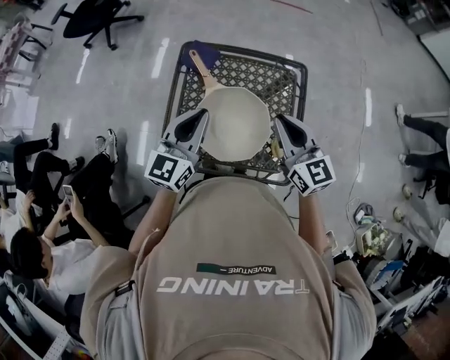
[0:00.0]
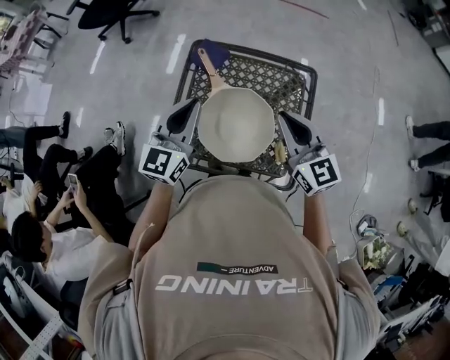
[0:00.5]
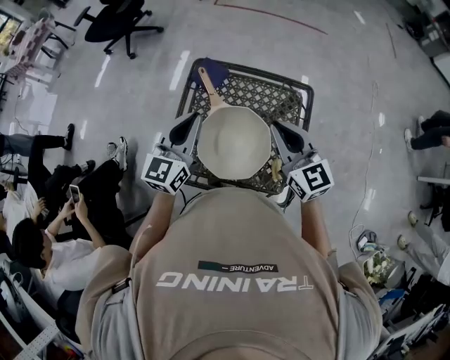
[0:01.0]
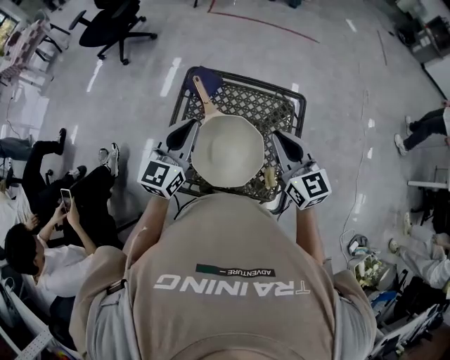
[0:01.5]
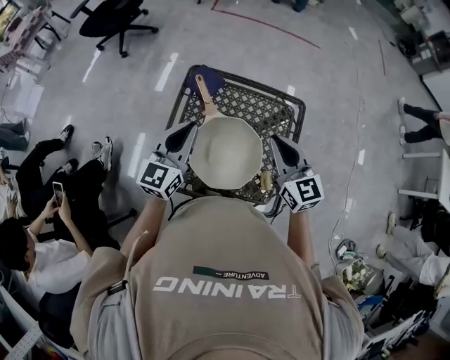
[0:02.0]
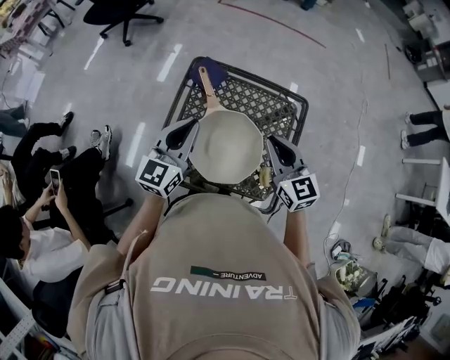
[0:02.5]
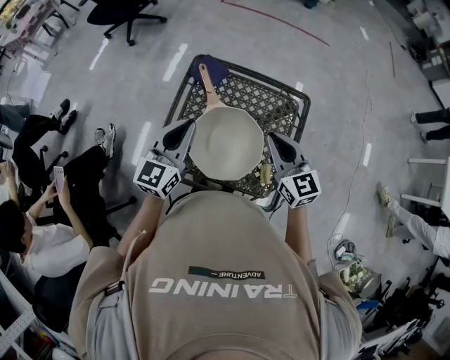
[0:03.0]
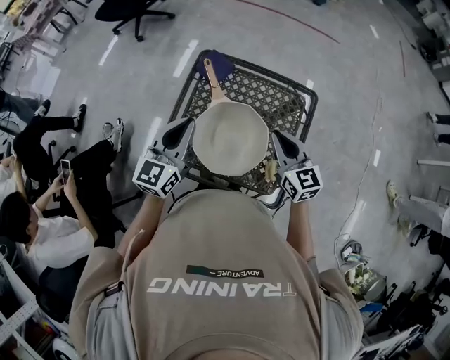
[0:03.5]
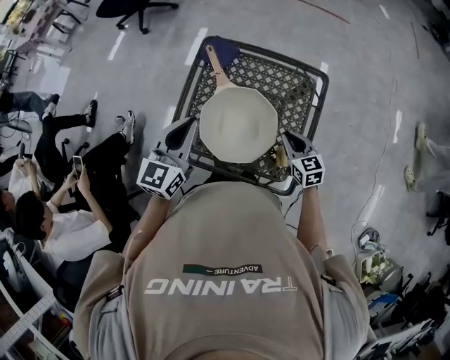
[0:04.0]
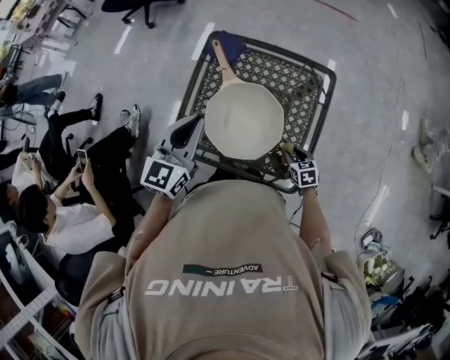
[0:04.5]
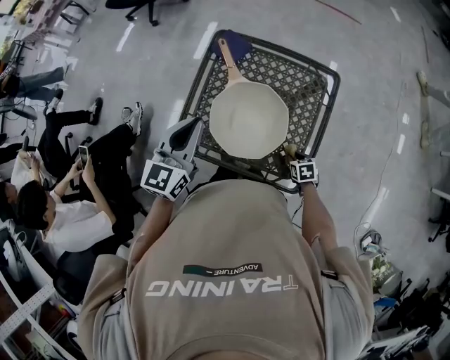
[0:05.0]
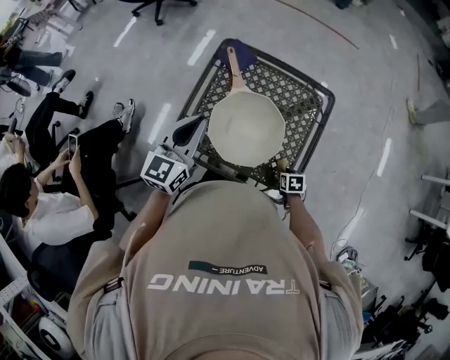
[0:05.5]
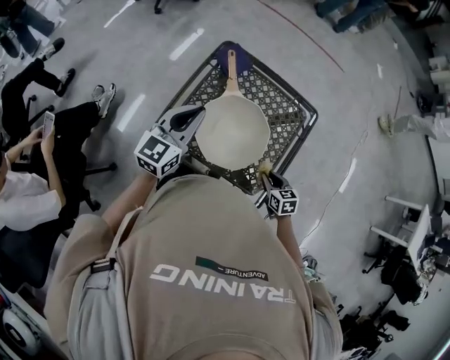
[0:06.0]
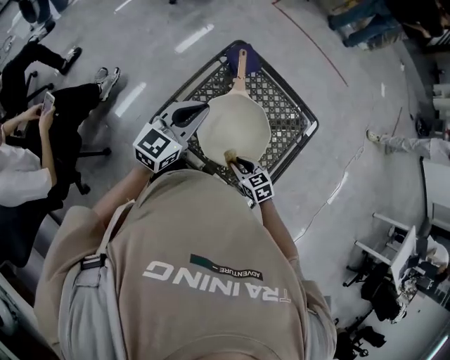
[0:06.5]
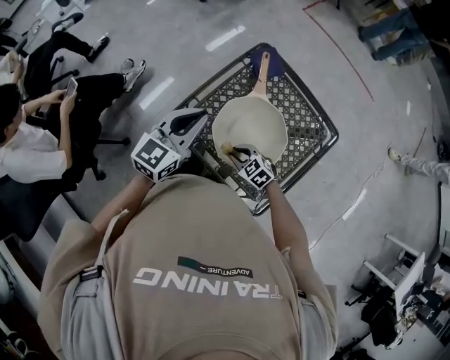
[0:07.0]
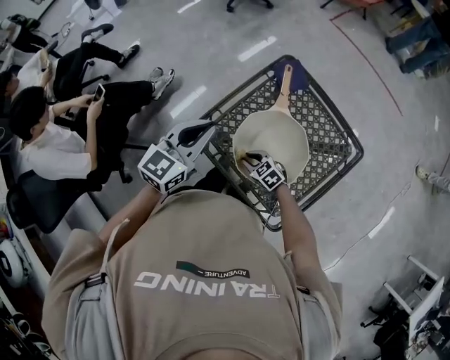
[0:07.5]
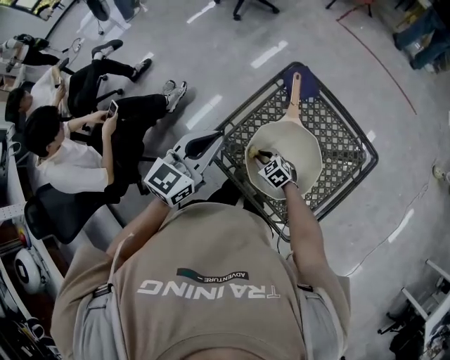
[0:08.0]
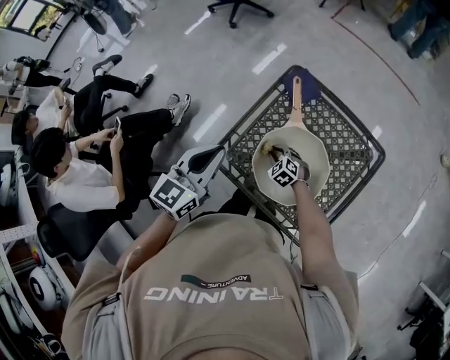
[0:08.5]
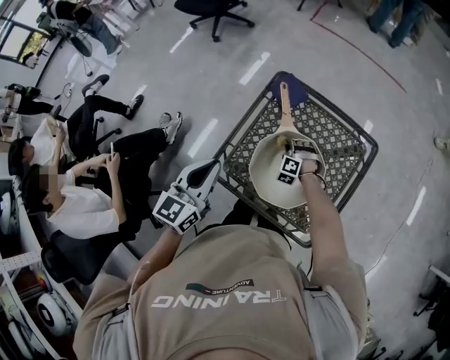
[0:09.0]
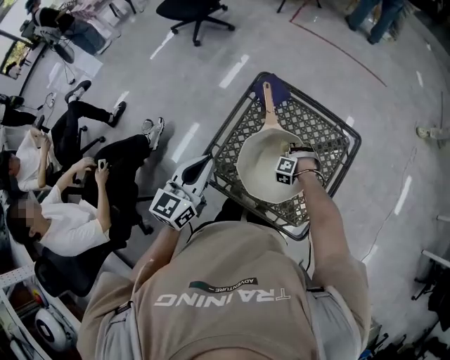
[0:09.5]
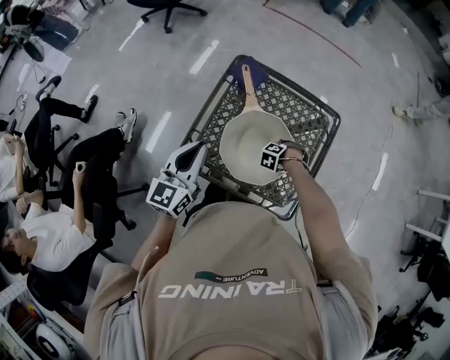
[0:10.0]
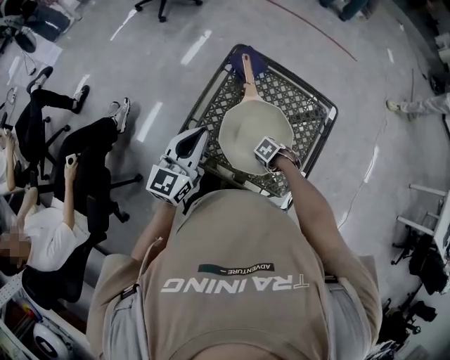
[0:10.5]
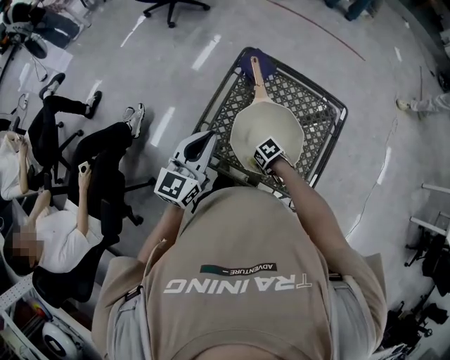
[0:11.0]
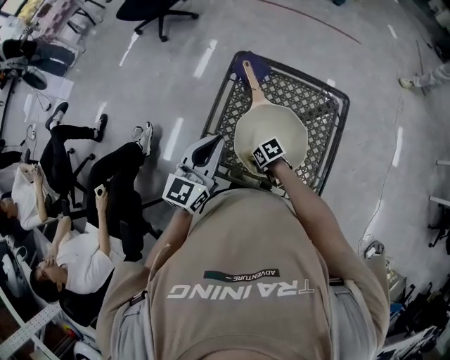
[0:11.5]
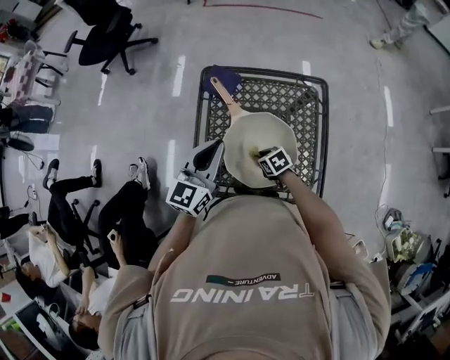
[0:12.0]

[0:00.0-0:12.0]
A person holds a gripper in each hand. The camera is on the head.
0.0 to 2.0 s: The grippers make only small movements.
2.0 to 4.0 s: The left gripper goes roughly 5 cm backward, while the right gripper is displaced downward by about 20 cm, and turns by approximately 20 degrees.
4.0 to 6.0 s: The right gripper travels backward by some 10 cm, and travels downward and back again, approximately 15 cm each way. Meanwhile the left gripper shifts by approximately 5 cm.
6.0 to 8.0 s: The right gripper moves about 30 cm, and twists approximately 40 degrees counterclockwise, seen from behind. Meanwhile the left gripper ends up about 5 cm from where it was.
8.0 to 10.0 s: The right gripper shifts by about 20 cm, and turns by approximately 60 degrees.
10.0 to 12.0 s: The right gripper twists roughly 70 degrees clockwise, seen from behind, while the left gripper moves some 10 cm, and rotates some 20 degrees.

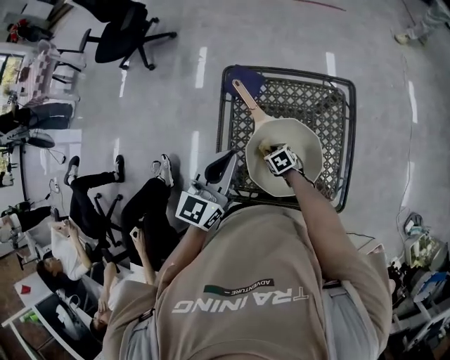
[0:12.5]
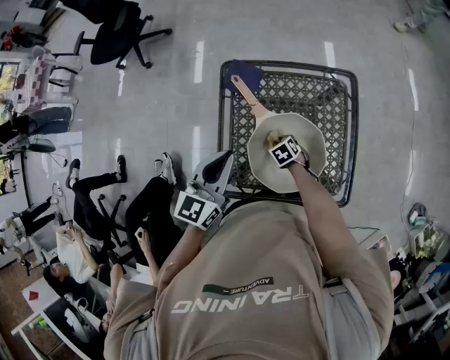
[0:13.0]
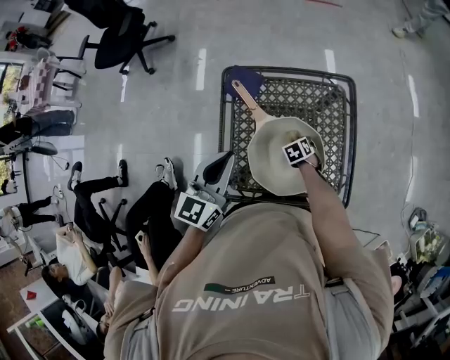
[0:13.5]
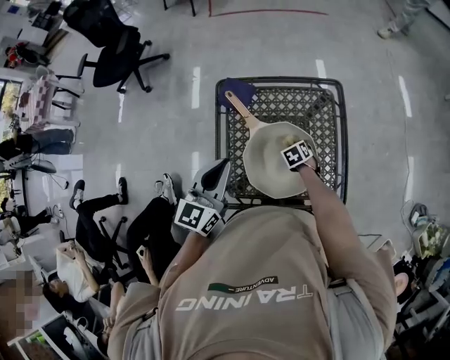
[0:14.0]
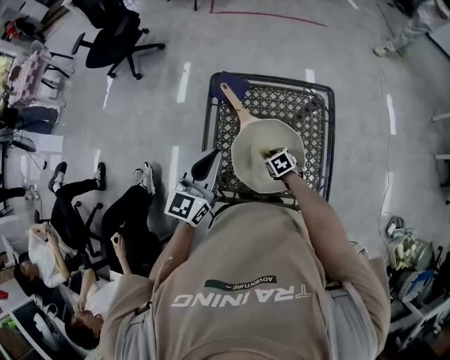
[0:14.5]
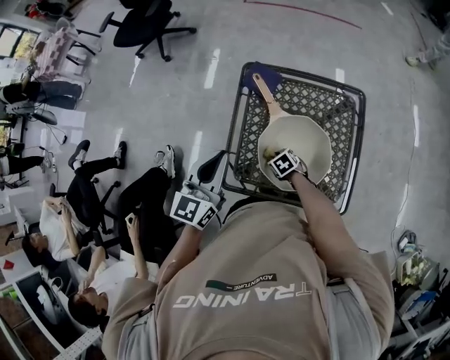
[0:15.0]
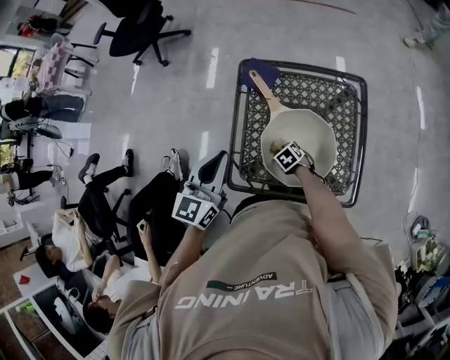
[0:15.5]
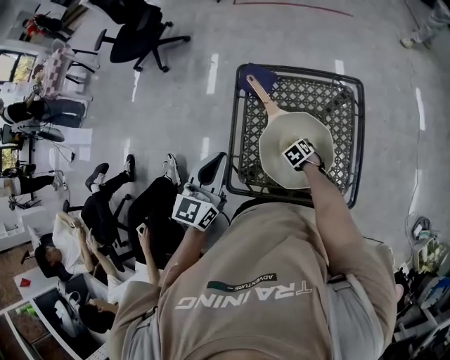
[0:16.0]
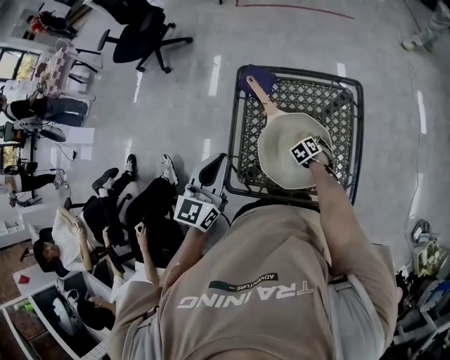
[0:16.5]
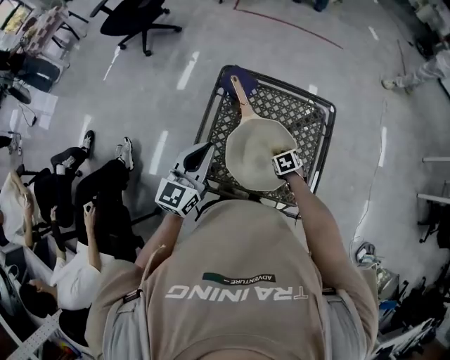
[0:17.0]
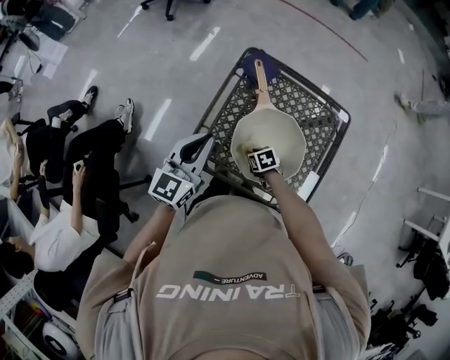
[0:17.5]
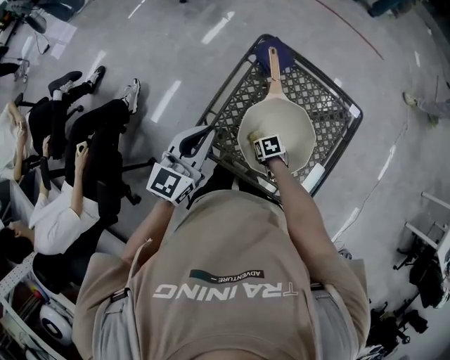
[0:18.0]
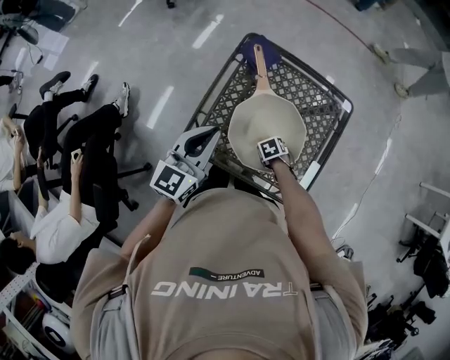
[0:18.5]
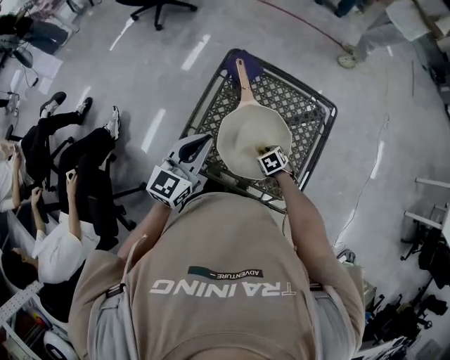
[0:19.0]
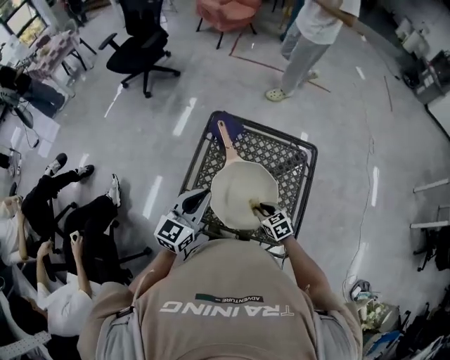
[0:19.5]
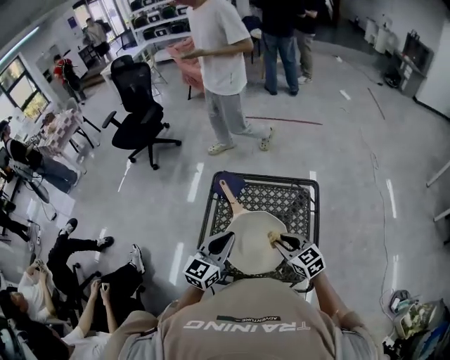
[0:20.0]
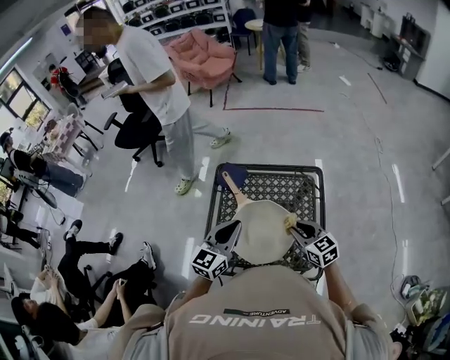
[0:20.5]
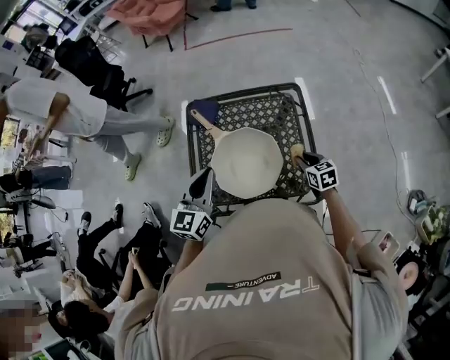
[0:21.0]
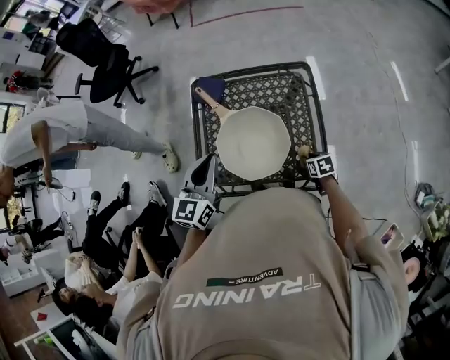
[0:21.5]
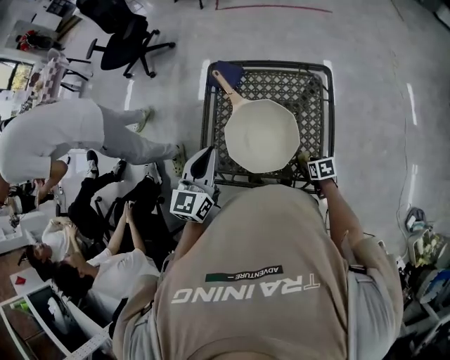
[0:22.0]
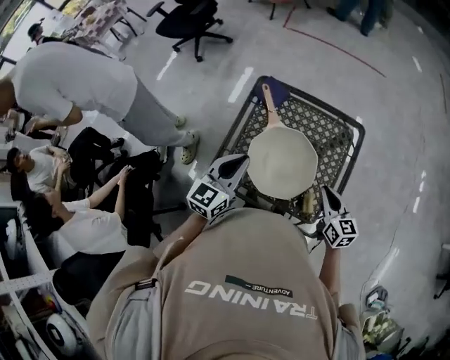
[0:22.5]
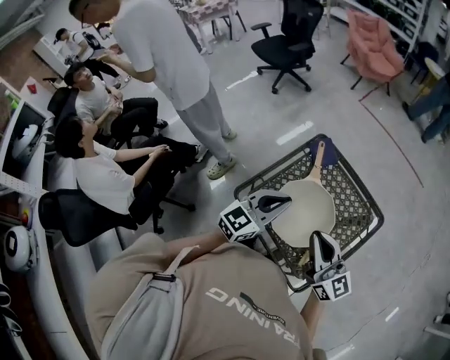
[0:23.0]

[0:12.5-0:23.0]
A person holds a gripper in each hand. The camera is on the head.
12.5 to 14.5 s: The right gripper is displaced to the right by about 5 cm.
14.5 to 16.5 s: The right gripper shifts by approximately 10 cm, and rotates roughly 30 degrees. The left gripper changes place by approximately 5 cm.
16.5 to 19.0 s: The left gripper ends up roughly 5 cm from where it was; the right gripper rotates some 20 degrees.
19.0 to 21.0 s: The right gripper travels to the right and upward by some 20 cm, and tips its fingers upward by approximately 30 degrees; the left gripper is displaced to the right by roughly 5 cm.
21.0 to 23.0 s: The right gripper moves upward, roughly 30 cm, tilts its fingers some 50 degrees upward, and opens, then closes once more; the left gripper ends up some 5 cm from where it was.

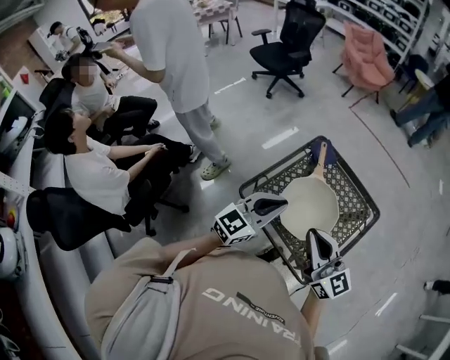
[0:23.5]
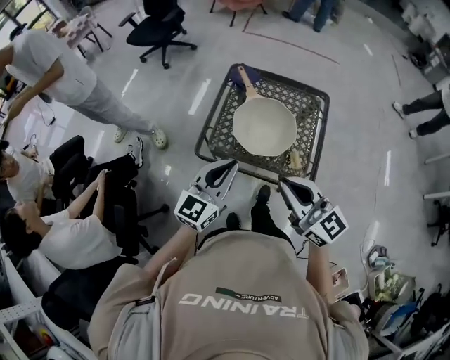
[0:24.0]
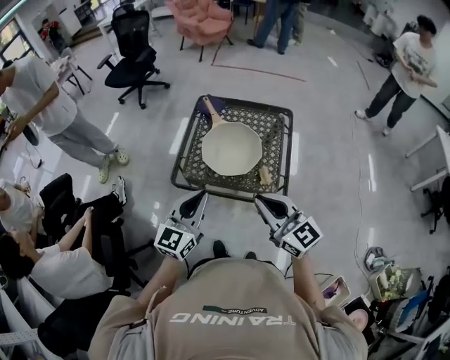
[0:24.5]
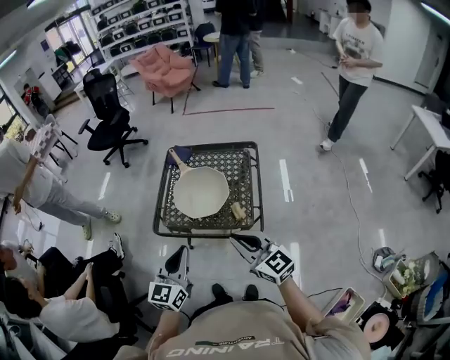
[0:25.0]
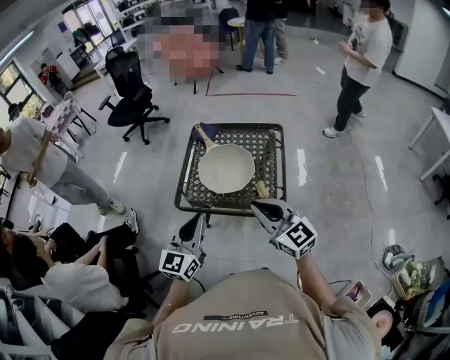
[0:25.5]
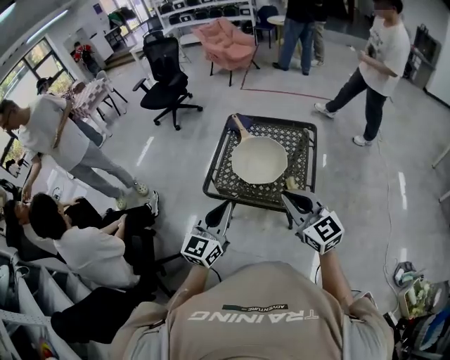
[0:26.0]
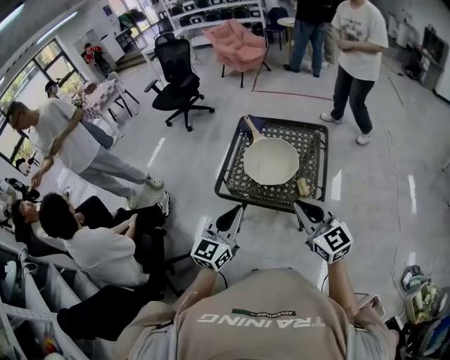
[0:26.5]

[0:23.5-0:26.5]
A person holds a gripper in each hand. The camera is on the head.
23.5 to 25.0 s: The left gripper goes some 20 cm backward, while the right gripper moves backward and to the right, some 20 cm, and rotates about 30 degrees.
25.0 to 26.5 s: The left gripper changes place by about 5 cm.

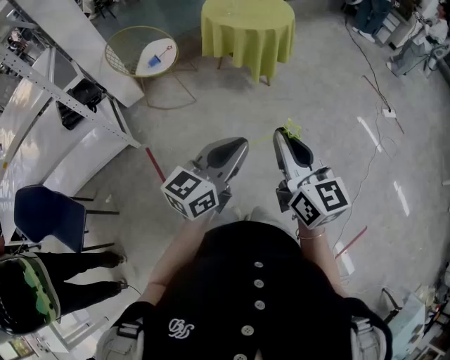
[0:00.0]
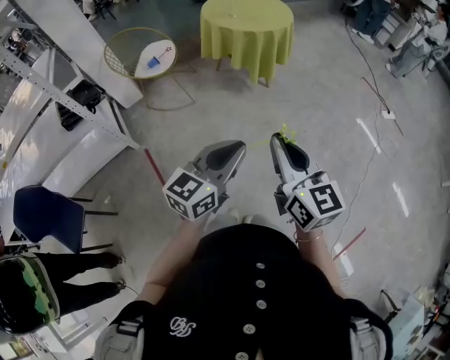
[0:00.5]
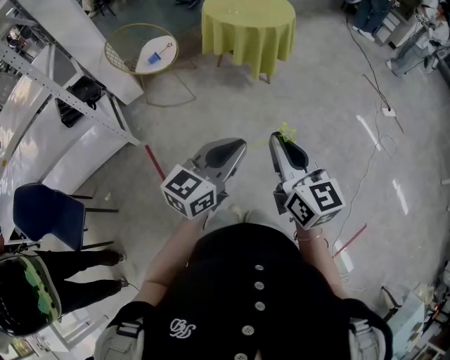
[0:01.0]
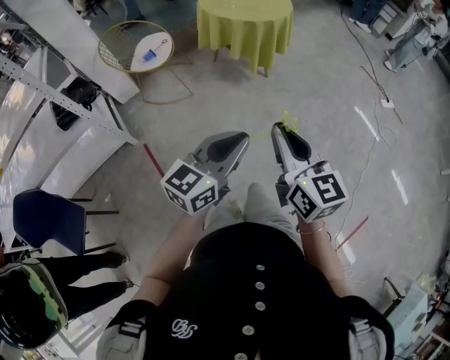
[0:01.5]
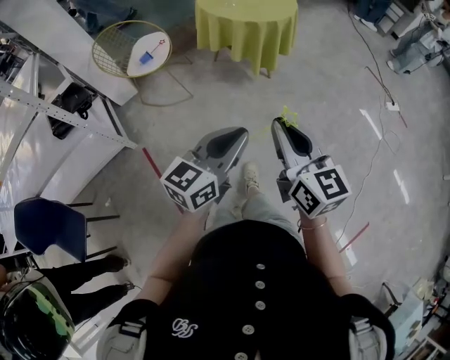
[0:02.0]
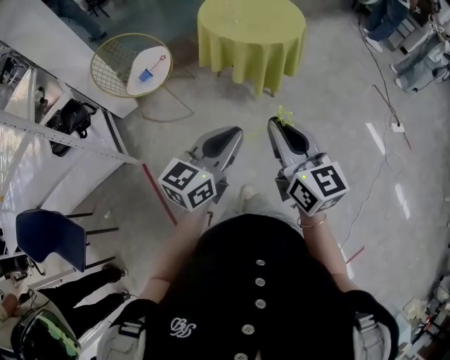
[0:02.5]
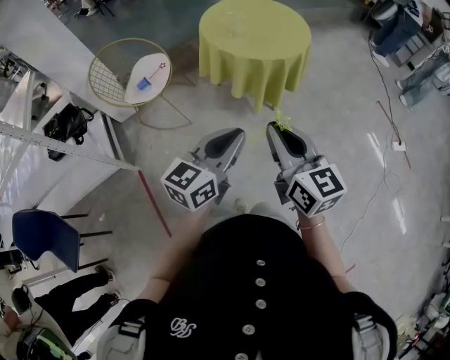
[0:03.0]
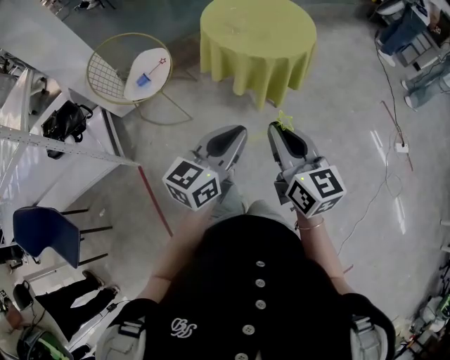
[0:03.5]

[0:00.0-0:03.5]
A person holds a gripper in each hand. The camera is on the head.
0.0 to 2.0 s: The grippers both shift forward by roughly 10 cm.
2.0 to 3.5 s: Both grippers move forward, roughly 25 cm.
